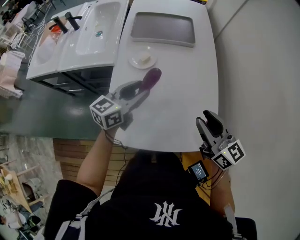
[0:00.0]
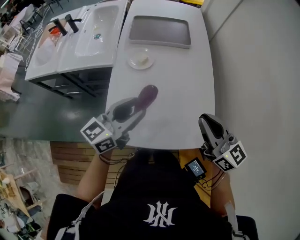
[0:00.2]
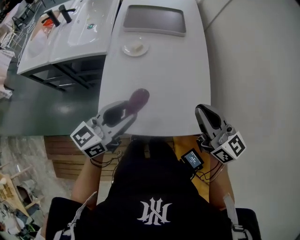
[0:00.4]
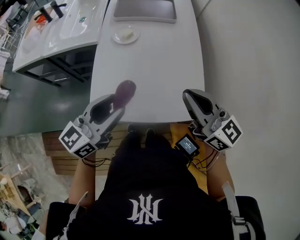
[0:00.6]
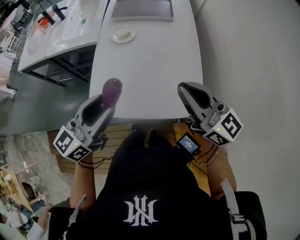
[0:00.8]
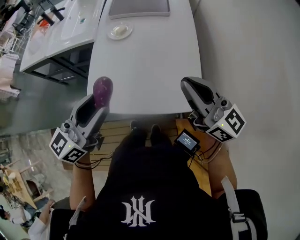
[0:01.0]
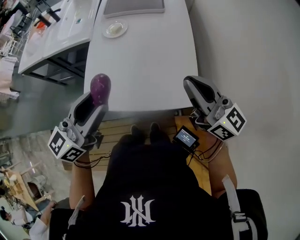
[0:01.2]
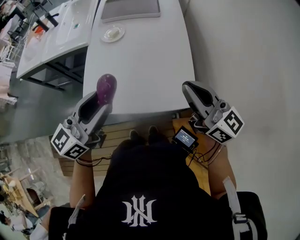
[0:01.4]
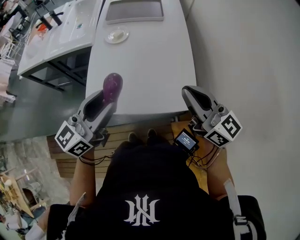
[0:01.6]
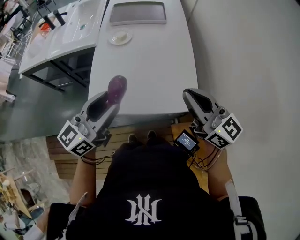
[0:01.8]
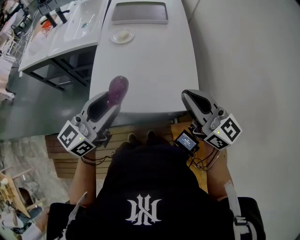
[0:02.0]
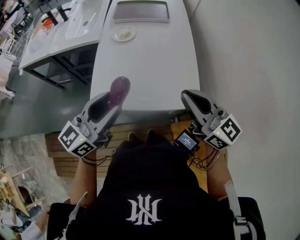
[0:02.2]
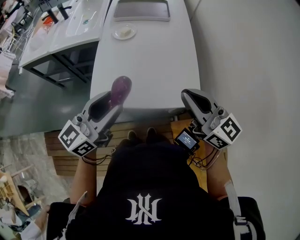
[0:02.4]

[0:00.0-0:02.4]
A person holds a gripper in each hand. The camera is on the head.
0:00.0 to 0:01.2: The left gripper heads backward and upward, covering approximately 30 cm. Meanwhile the right gripper travels backward, to the right and upward by roughly 15 cm, and closes its fingers.
0:01.2 to 0:02.4: The right gripper moves to the left and backward, approximately 10 cm. Meanwhile the left gripper changes place by roughly 5 cm.

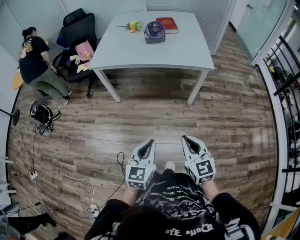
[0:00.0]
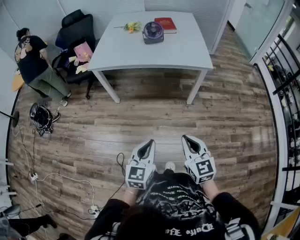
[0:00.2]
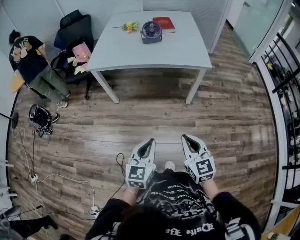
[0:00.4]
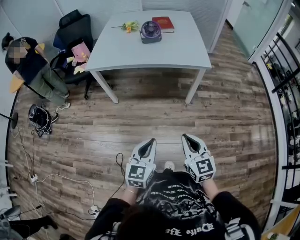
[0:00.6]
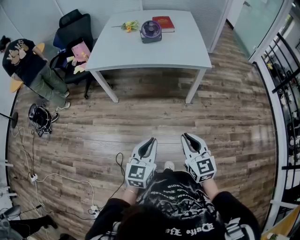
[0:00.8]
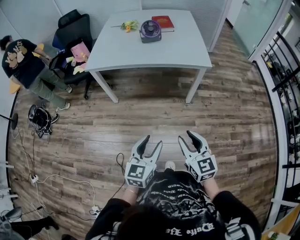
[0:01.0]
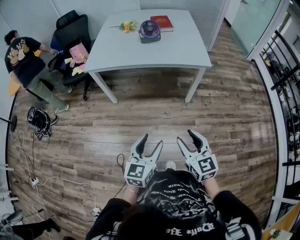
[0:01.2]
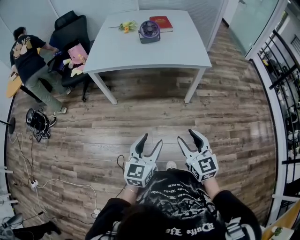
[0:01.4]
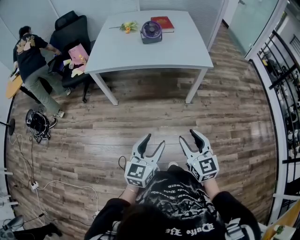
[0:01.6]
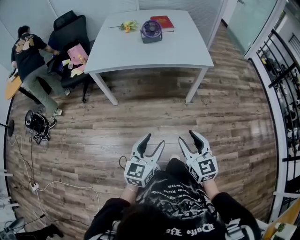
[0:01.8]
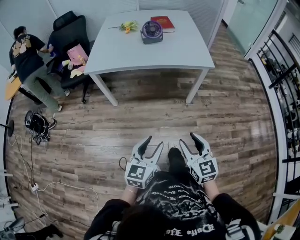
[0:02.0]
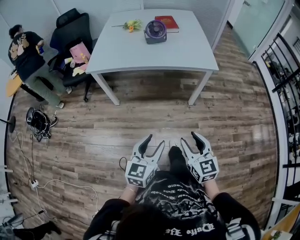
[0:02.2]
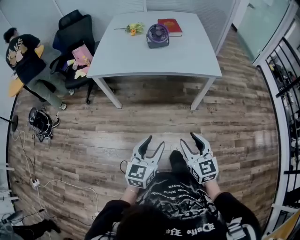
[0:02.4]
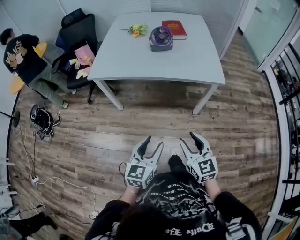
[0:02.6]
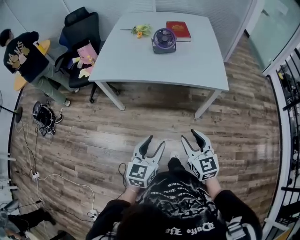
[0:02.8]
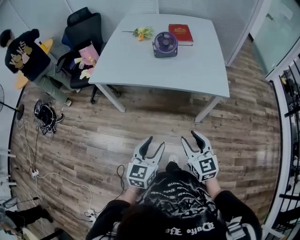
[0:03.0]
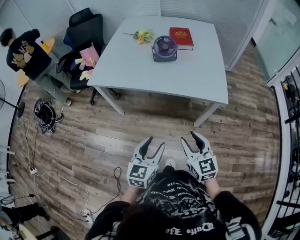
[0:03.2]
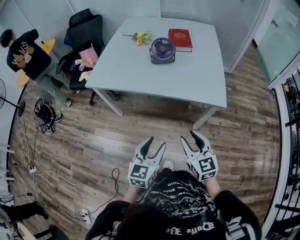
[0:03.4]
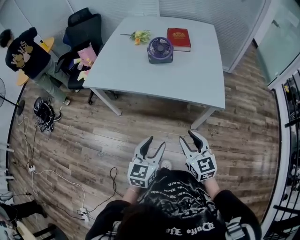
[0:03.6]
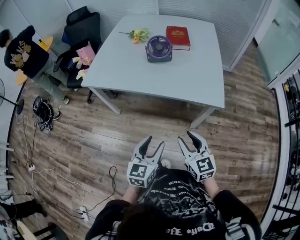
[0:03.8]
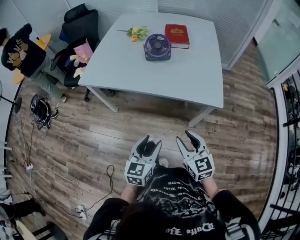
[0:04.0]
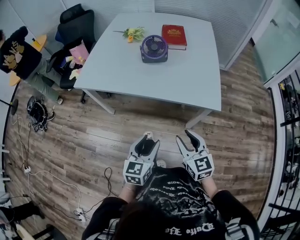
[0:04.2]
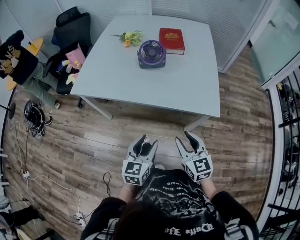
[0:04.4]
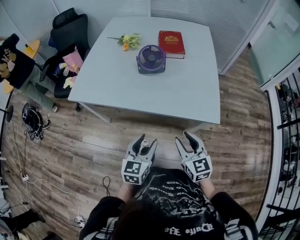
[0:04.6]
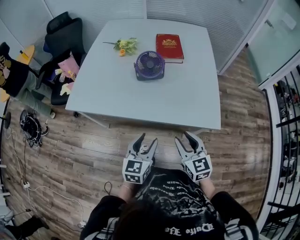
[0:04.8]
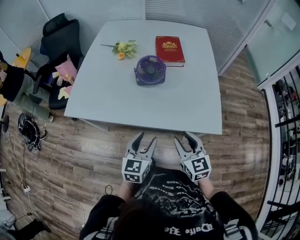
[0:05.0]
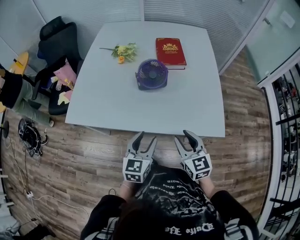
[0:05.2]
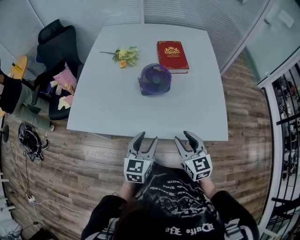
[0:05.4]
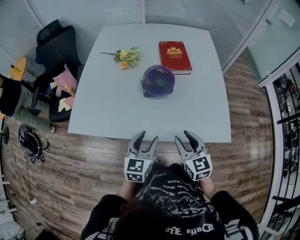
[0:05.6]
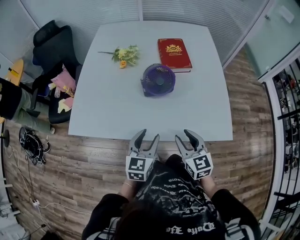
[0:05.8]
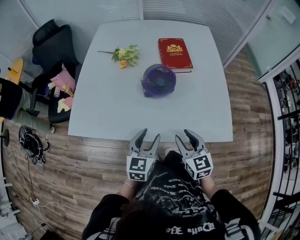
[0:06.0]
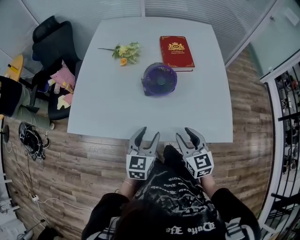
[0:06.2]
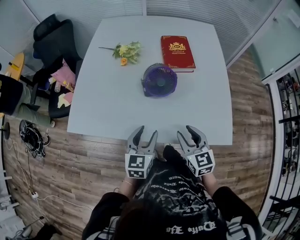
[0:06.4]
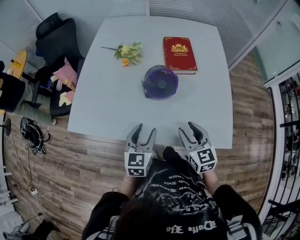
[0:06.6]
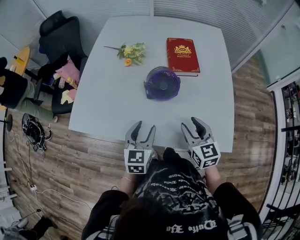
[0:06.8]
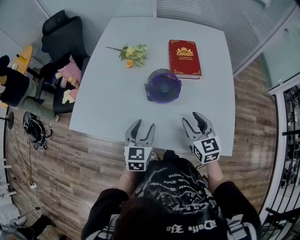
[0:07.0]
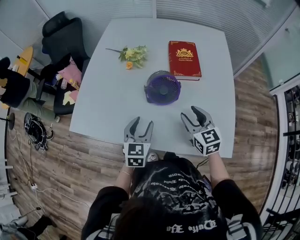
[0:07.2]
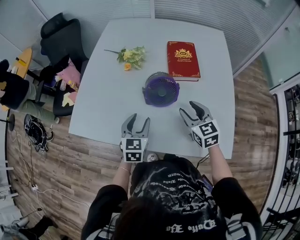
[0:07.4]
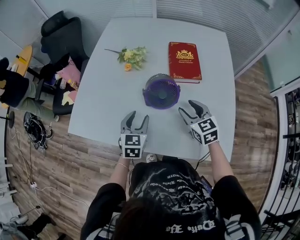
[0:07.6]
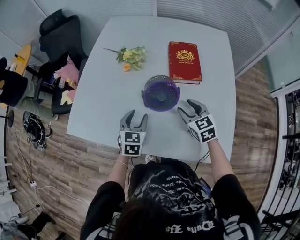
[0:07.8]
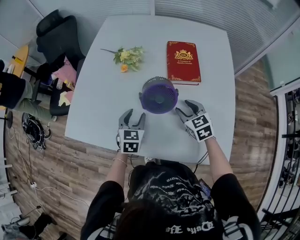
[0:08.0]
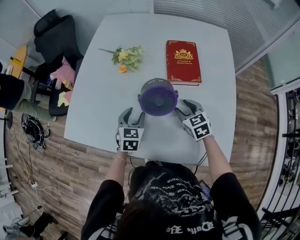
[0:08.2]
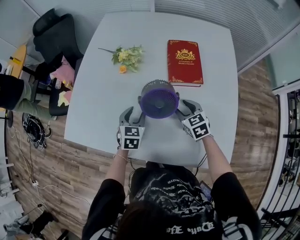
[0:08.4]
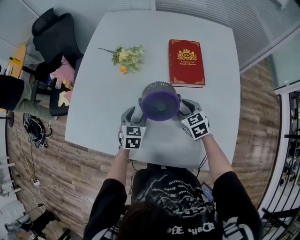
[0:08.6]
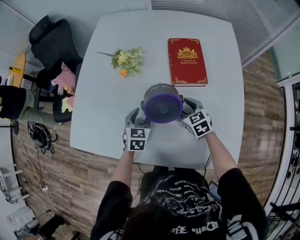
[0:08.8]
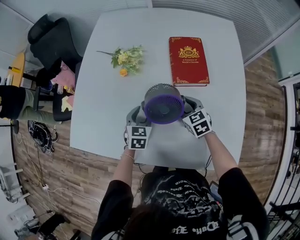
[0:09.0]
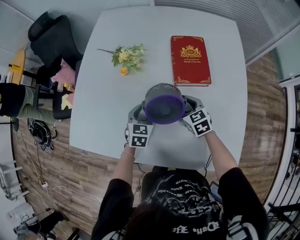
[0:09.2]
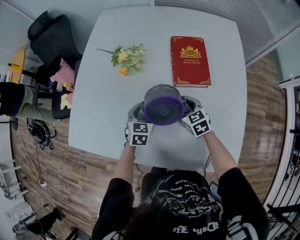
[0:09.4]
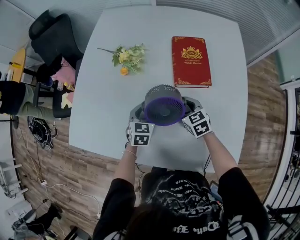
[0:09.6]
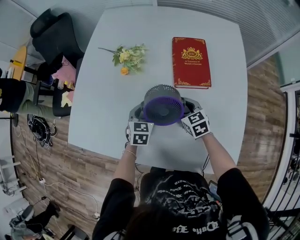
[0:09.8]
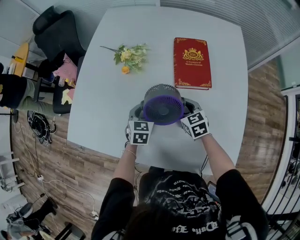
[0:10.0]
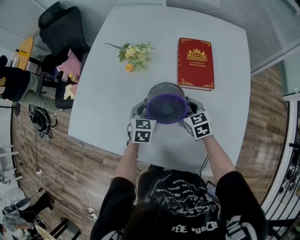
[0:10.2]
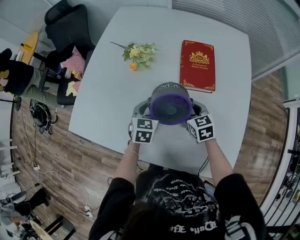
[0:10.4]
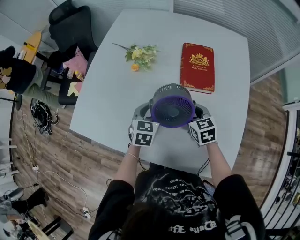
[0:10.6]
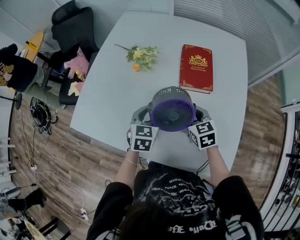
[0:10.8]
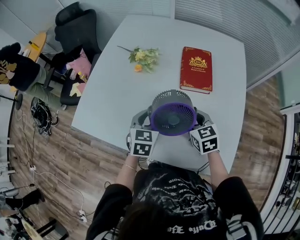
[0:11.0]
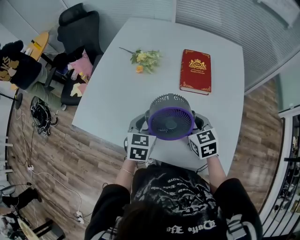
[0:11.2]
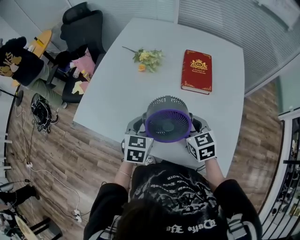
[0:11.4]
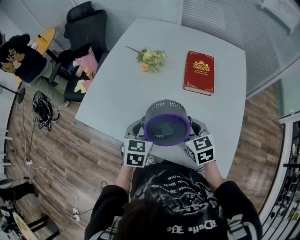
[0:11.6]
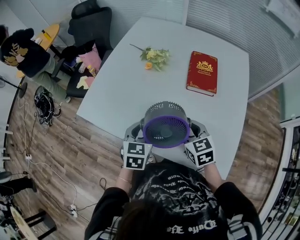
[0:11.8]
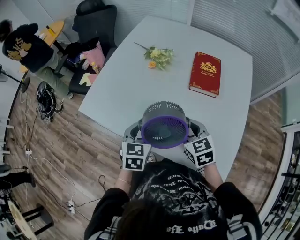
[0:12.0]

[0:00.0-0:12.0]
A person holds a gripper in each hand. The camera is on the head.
0:00.0 to 0:01.6: The left gripper opens up. Meanwhile the right gripper opens.
0:01.6 to 0:03.0: The two grippers go about 20 cm forward.
0:03.0 to 0:04.4: The grippers both shift forward and to the right by approximately 15 cm.
0:04.4 to 0:06.0: The left gripper heads forward, covering roughly 25 cm; the right gripper goes some 25 cm forward and to the left.
0:06.0 to 0:07.6: The grippers both shift forward by roughly 20 cm.
0:07.6 to 0:09.0: The left gripper travels forward and downward by about 15 cm. The right gripper moves downward and forward, approximately 15 cm.
0:09.0 to 0:10.4: The left gripper closes up.
0:10.4 to 0:12.0: Both grippers move backward, upward and to the left, approximately 20 cm.

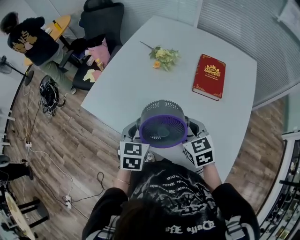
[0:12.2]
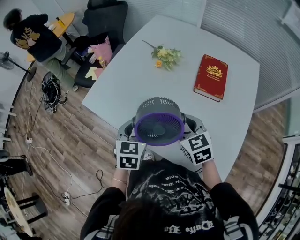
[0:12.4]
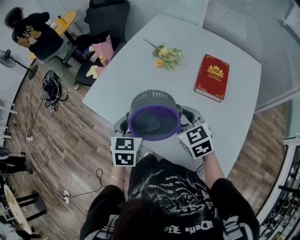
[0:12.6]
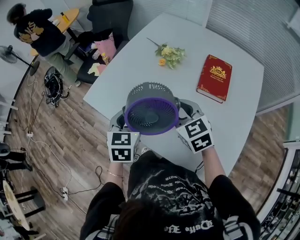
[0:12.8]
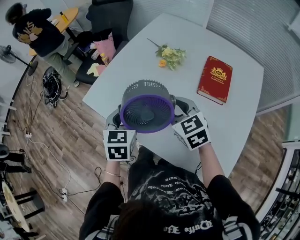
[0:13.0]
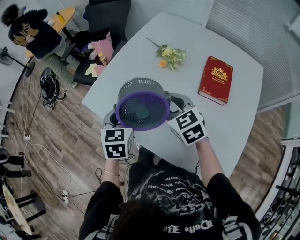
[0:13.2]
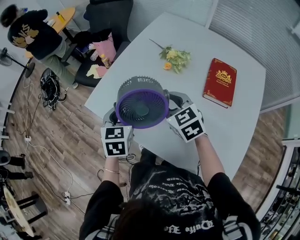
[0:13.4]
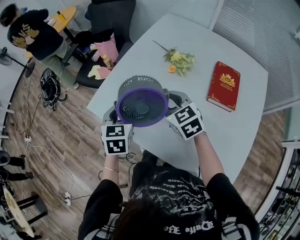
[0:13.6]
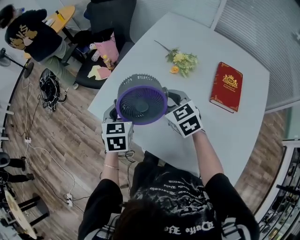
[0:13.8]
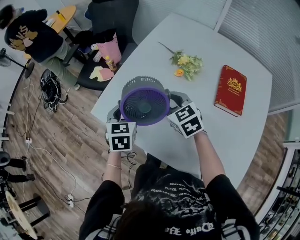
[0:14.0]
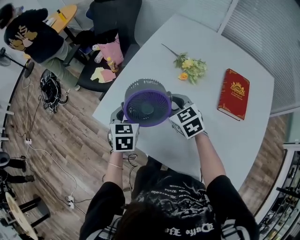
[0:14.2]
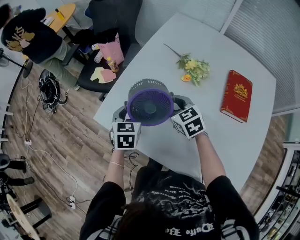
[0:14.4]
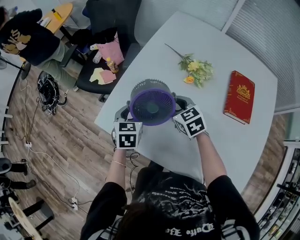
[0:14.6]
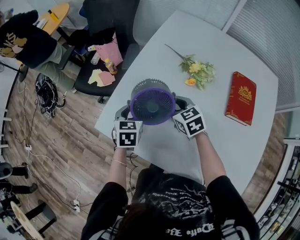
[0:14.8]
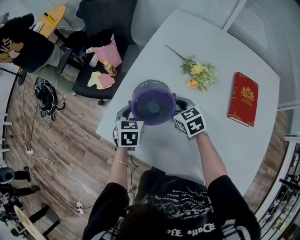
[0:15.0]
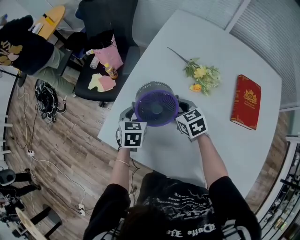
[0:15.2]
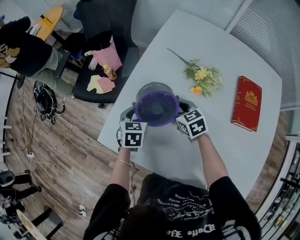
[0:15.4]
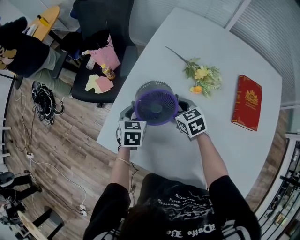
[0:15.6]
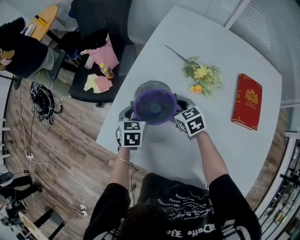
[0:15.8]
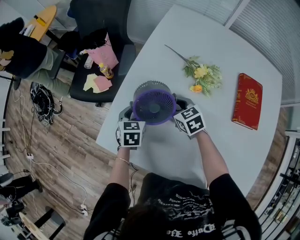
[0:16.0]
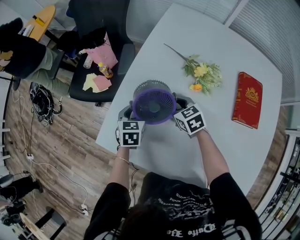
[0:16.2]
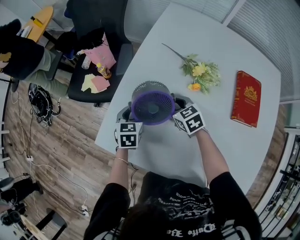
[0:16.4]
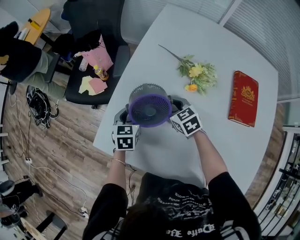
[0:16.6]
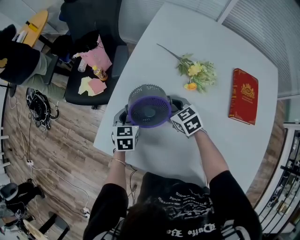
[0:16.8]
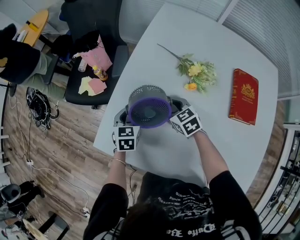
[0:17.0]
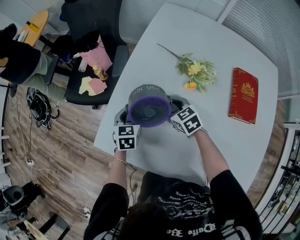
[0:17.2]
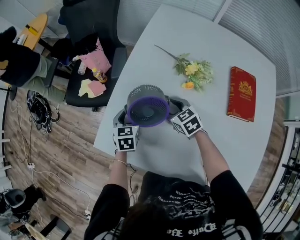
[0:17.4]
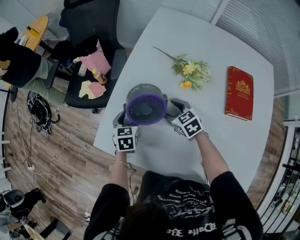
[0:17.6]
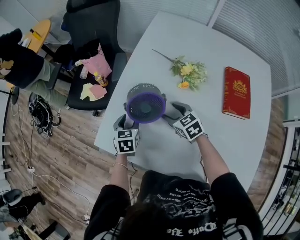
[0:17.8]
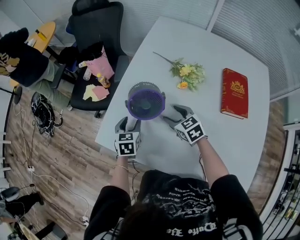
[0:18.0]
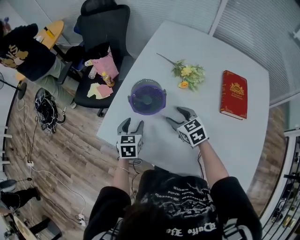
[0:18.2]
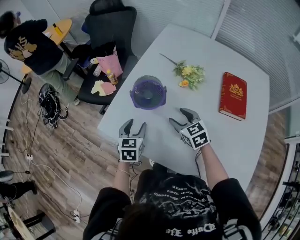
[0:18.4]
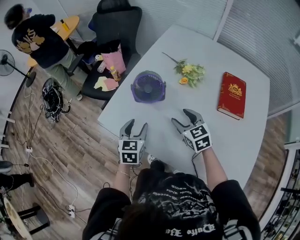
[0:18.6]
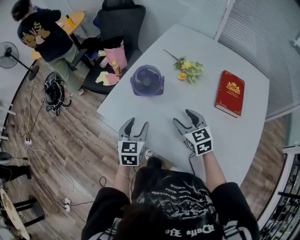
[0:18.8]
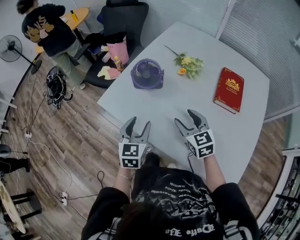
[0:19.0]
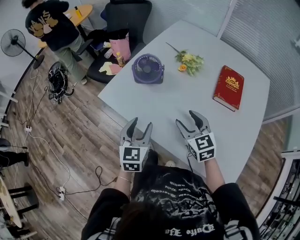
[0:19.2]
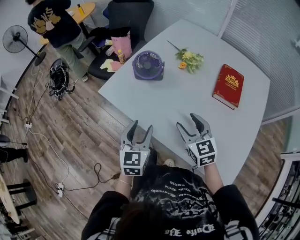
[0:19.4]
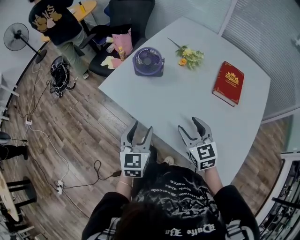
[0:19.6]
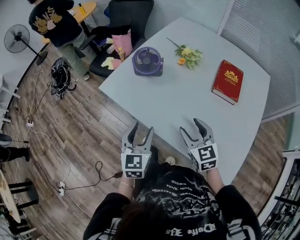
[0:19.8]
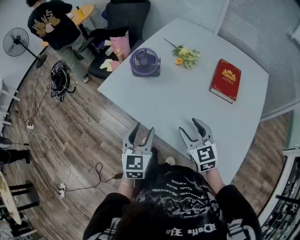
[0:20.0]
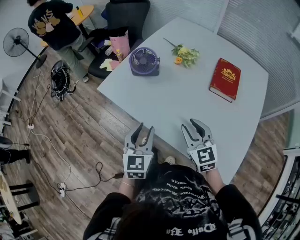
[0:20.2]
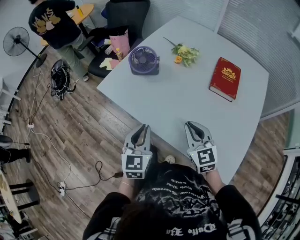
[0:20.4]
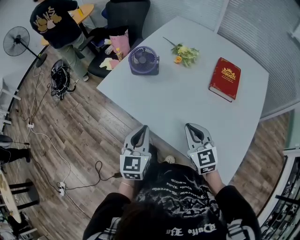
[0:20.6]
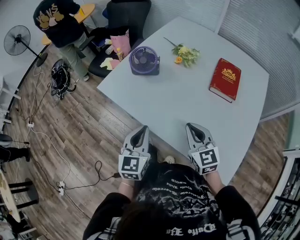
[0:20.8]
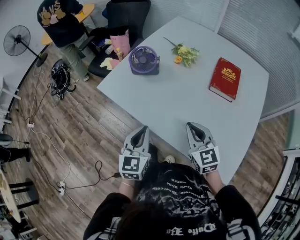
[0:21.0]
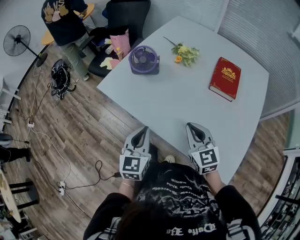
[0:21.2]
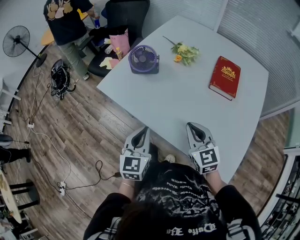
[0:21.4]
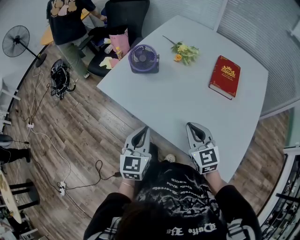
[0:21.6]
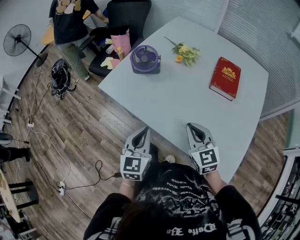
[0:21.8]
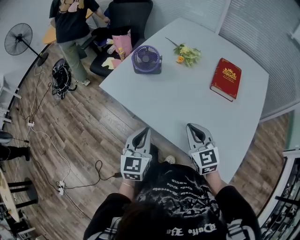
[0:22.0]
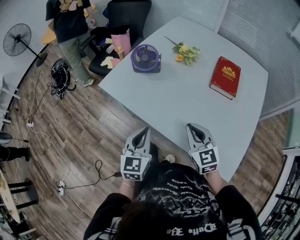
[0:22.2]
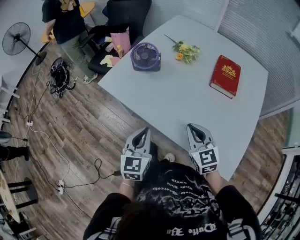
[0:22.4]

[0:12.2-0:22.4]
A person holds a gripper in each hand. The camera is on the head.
0:12.2 to 0:13.6: Both grippers move forward and to the left, some 20 cm.
0:13.6 to 0:15.2: Both grippers travel together forward and downward, roughly 25 cm.
0:15.2 to 0:16.6: The grippers make only small movements.
0:16.6 to 0:18.0: Both grippers move backward, some 10 cm. The right gripper opens its fingers. Meanwhile the left gripper opens up.
0:18.0 to 0:19.4: Both grippers move backward and upward, about 30 cm. The left gripper changes its angle by some 20 degrees.
0:19.4 to 0:21.0: Both grippers travel together backward, approximately 5 cm. The right gripper closes. Meanwhile the left gripper closes its fingers.
0:21.0 to 0:22.4: There are only small adjustments of the grippers.
